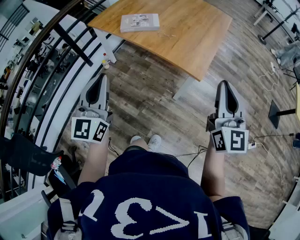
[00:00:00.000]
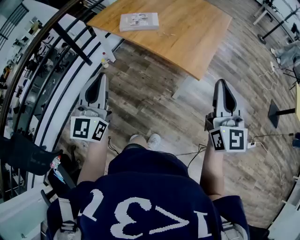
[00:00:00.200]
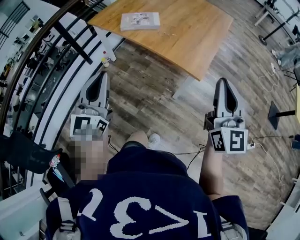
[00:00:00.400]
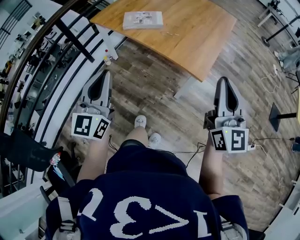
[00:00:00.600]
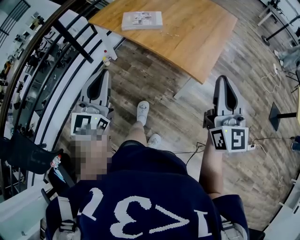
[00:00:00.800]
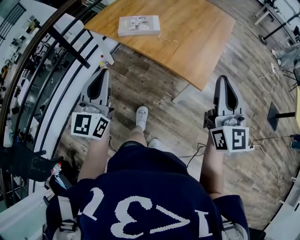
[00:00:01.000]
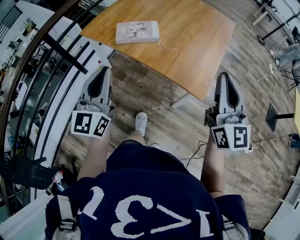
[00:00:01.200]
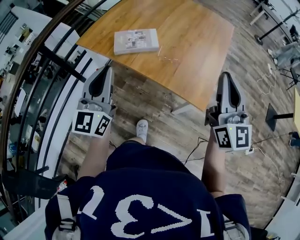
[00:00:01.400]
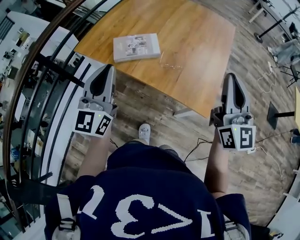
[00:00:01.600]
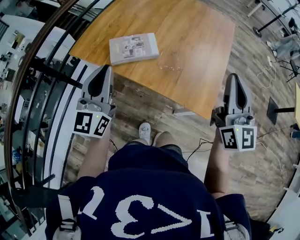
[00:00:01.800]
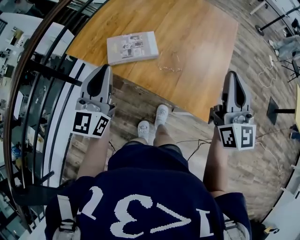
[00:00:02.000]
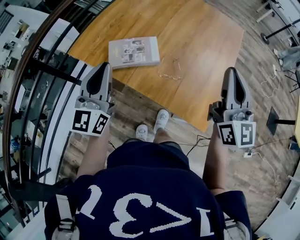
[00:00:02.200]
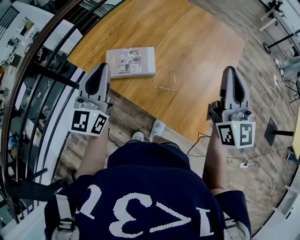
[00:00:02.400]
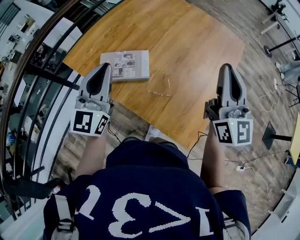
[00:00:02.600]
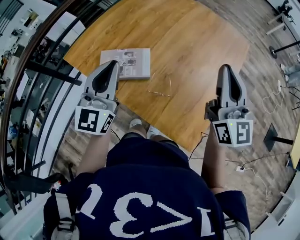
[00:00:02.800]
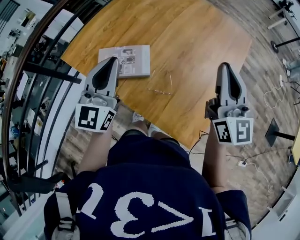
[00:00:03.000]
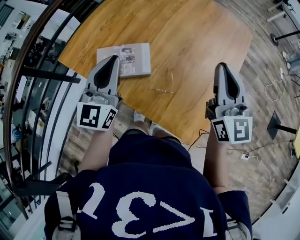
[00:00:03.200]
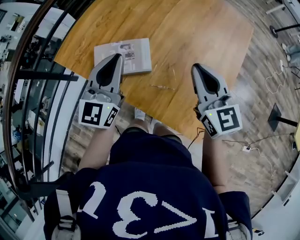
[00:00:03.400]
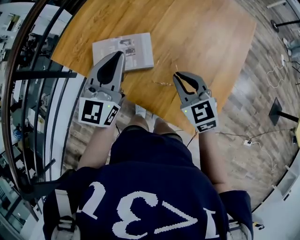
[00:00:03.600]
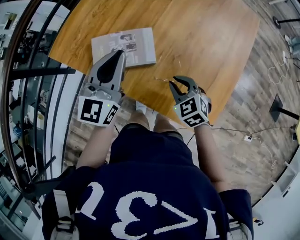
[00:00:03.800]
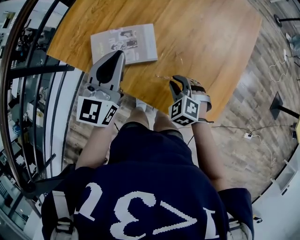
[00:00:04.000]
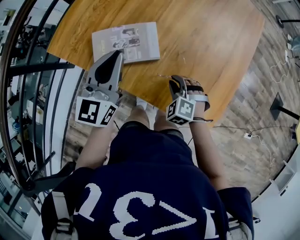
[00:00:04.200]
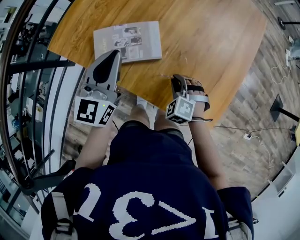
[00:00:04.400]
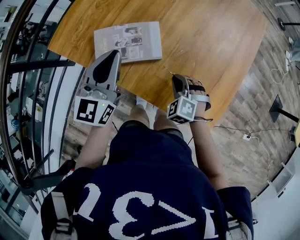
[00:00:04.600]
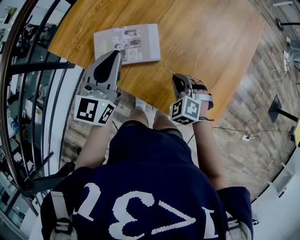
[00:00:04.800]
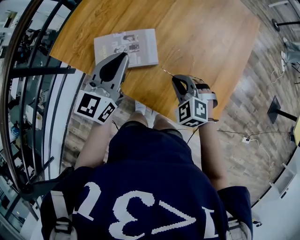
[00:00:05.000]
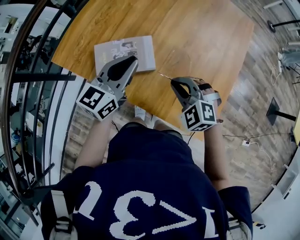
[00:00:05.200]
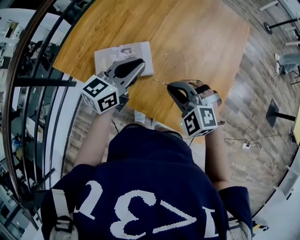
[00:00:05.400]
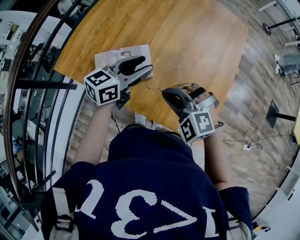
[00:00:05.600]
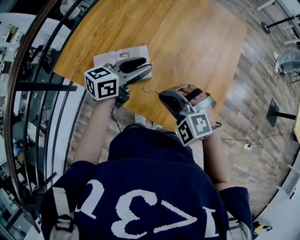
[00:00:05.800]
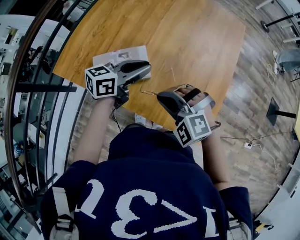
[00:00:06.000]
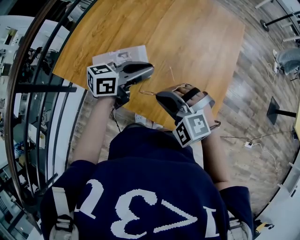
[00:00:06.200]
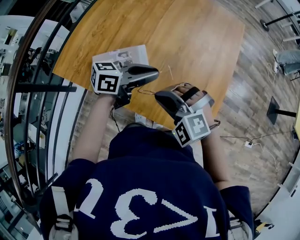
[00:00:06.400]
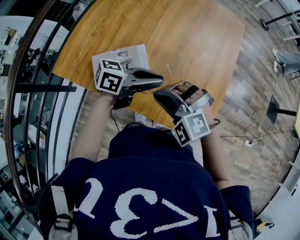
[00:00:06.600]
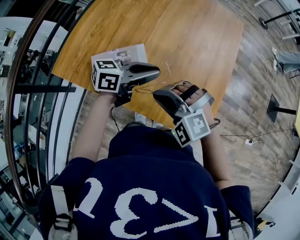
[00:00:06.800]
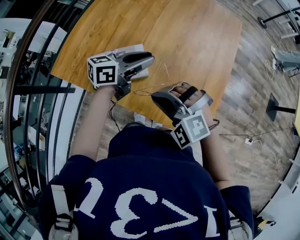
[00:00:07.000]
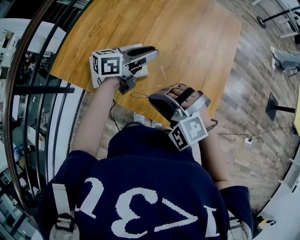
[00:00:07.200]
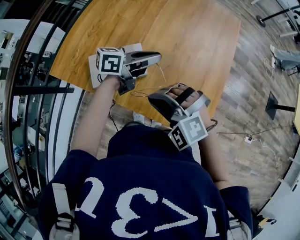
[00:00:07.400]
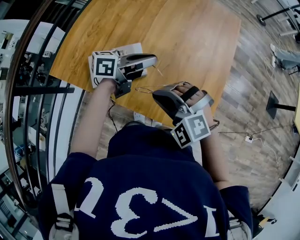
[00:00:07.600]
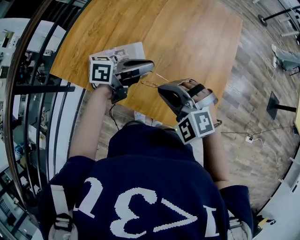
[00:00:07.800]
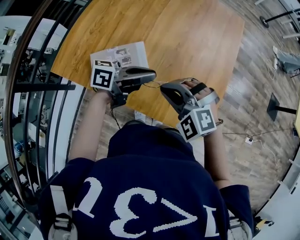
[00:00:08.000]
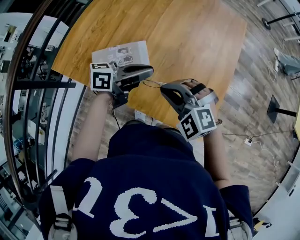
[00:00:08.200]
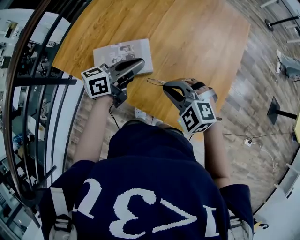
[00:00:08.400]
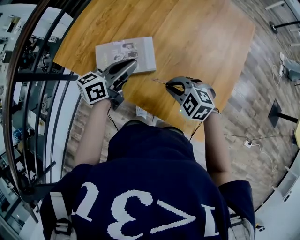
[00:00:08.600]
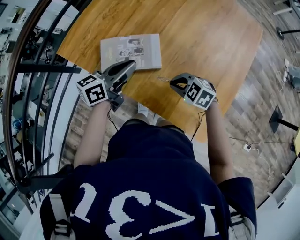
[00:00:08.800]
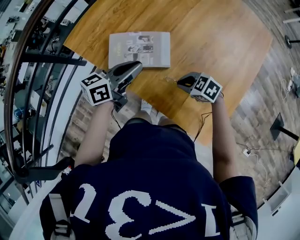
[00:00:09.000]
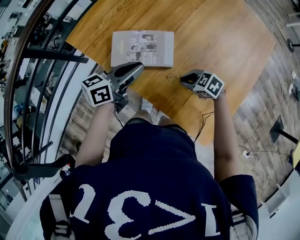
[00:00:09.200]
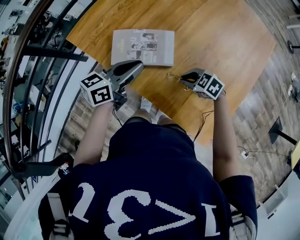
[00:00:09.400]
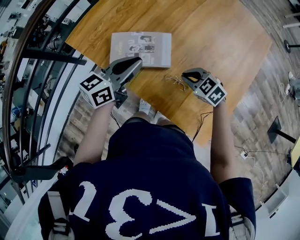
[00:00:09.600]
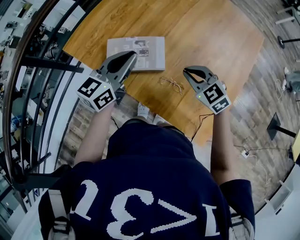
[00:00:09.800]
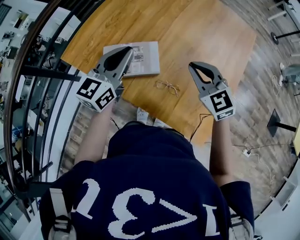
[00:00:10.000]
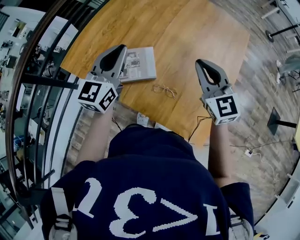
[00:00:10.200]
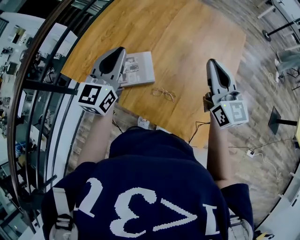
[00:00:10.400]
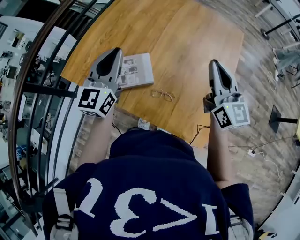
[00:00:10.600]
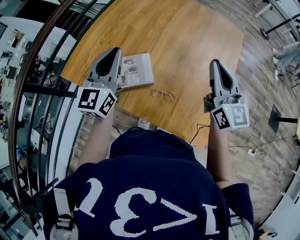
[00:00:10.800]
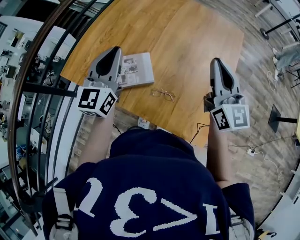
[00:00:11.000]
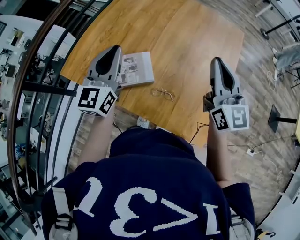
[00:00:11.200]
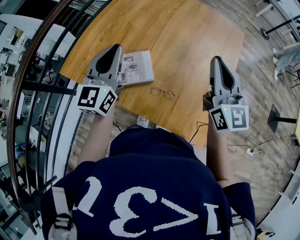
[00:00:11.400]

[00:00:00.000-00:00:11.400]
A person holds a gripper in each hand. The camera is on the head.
00:00:00.000 to 00:00:01.400: The two grippers go roughly 20 cm forward.
00:00:01.400 to 00:00:02.800: The two grippers go about 25 cm forward.
00:00:02.800 to 00:00:04.200: The left gripper goes about 15 cm downward and forward. The right gripper shifts approximately 40 cm downward, and points its fingers about 70 degrees further downward.
00:00:04.200 to 00:00:05.600: The right gripper goes approximately 20 cm upward, and changes its angle by approximately 30 degrees. The left gripper shifts about 10 cm to the right, rotates some 40 degrees, and opens.
00:00:05.600 to 00:00:07.200: The left gripper moves approximately 5 cm, and changes its angle by some 20 degrees.
00:00:07.200 to 00:00:08.600: The left gripper ends up some 10 cm from where it was, and closes its fingers. Meanwhile the right gripper is displaced downward by roughly 10 cm, and changes its angle by approximately 30 degrees.
00:00:08.600 to 00:00:10.000: Both grippers move upward, roughly 10 cm. The left gripper turns by approximately 40 degrees, while the right gripper rotates about 40 degrees.
00:00:10.000 to 00:00:11.400: The right gripper heads upward and to the right, covering approximately 15 cm, and tilts its fingers roughly 30 degrees upward. The left gripper shifts some 5 cm upward.

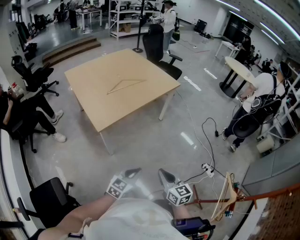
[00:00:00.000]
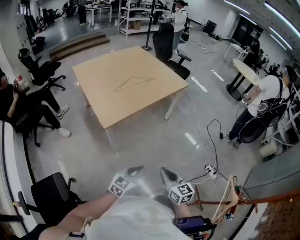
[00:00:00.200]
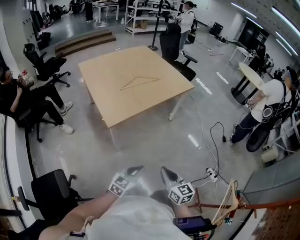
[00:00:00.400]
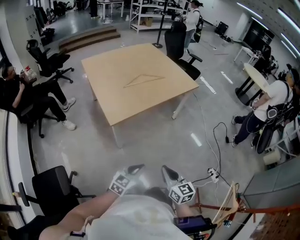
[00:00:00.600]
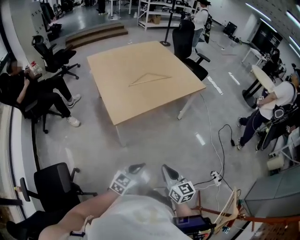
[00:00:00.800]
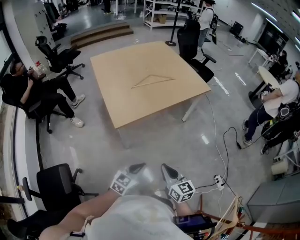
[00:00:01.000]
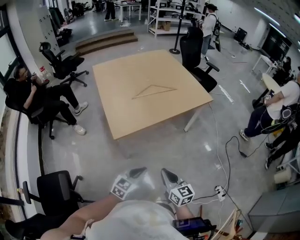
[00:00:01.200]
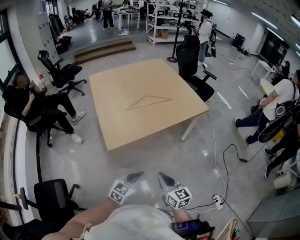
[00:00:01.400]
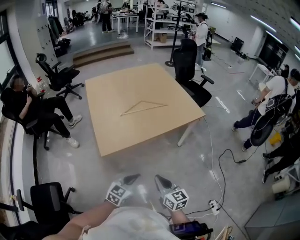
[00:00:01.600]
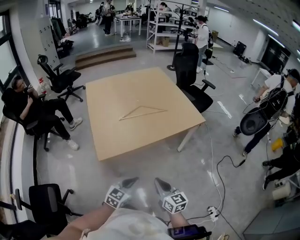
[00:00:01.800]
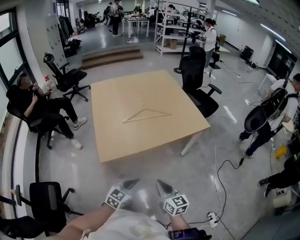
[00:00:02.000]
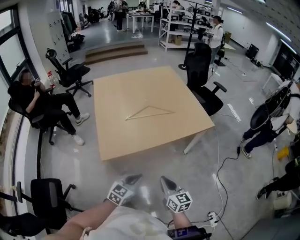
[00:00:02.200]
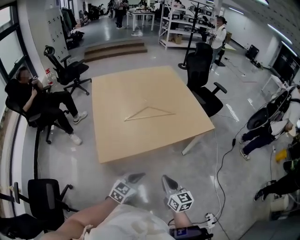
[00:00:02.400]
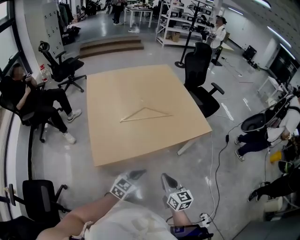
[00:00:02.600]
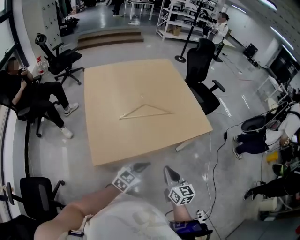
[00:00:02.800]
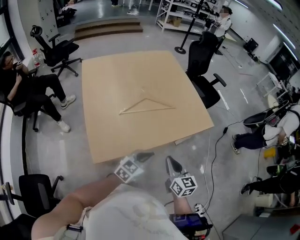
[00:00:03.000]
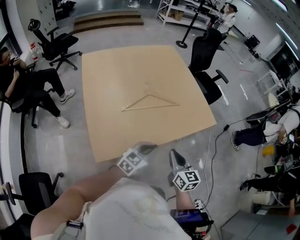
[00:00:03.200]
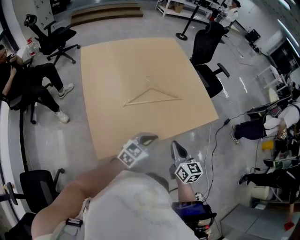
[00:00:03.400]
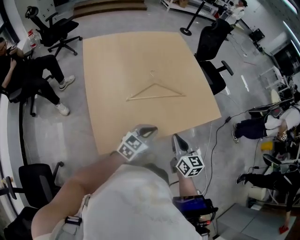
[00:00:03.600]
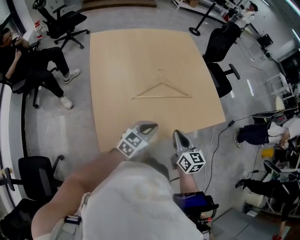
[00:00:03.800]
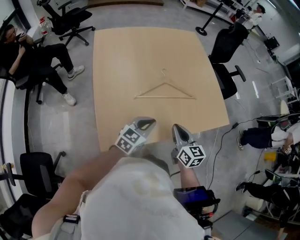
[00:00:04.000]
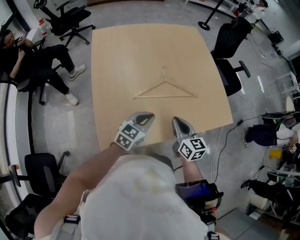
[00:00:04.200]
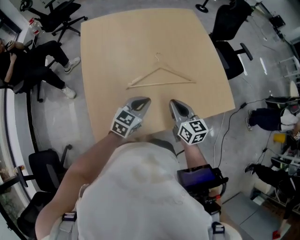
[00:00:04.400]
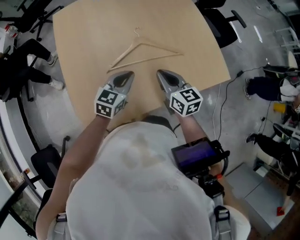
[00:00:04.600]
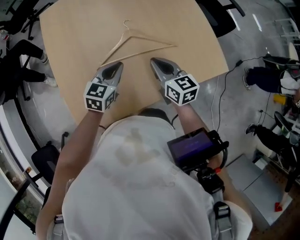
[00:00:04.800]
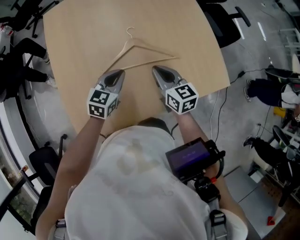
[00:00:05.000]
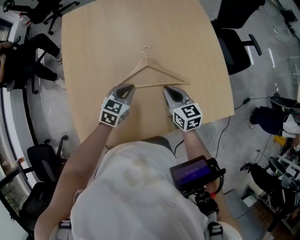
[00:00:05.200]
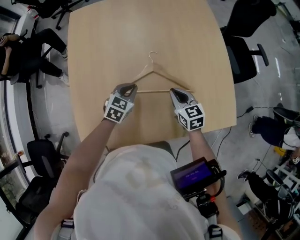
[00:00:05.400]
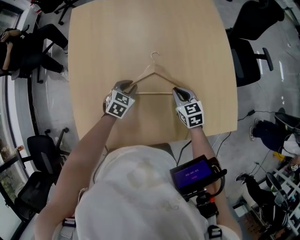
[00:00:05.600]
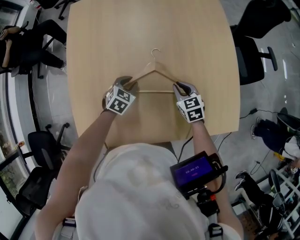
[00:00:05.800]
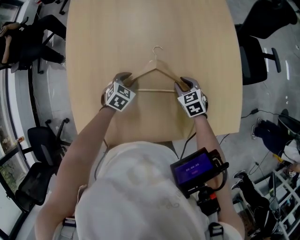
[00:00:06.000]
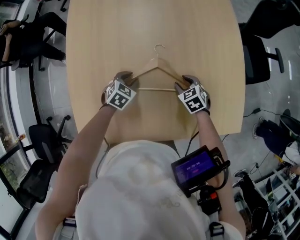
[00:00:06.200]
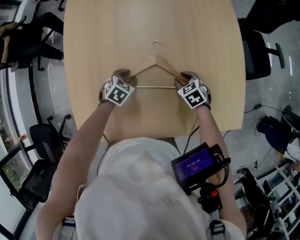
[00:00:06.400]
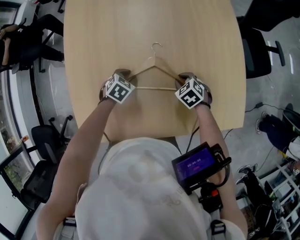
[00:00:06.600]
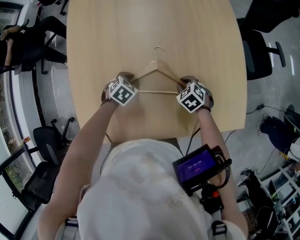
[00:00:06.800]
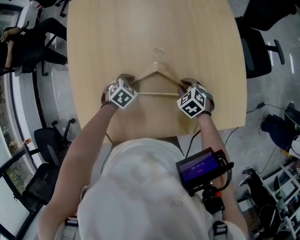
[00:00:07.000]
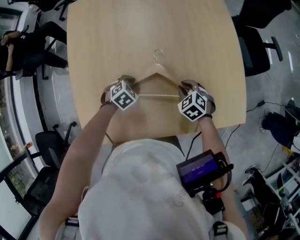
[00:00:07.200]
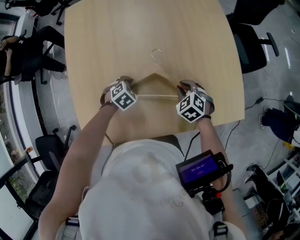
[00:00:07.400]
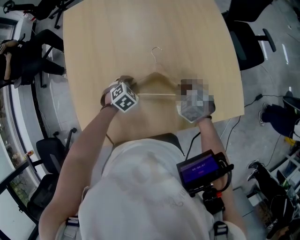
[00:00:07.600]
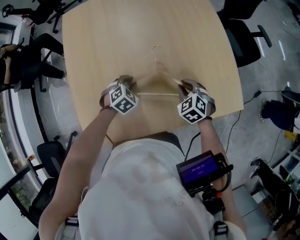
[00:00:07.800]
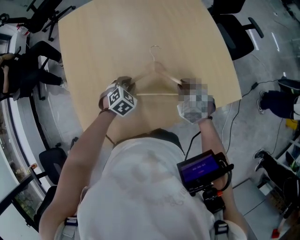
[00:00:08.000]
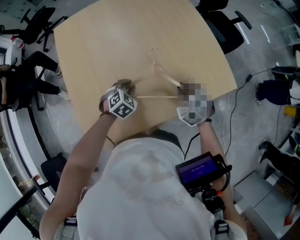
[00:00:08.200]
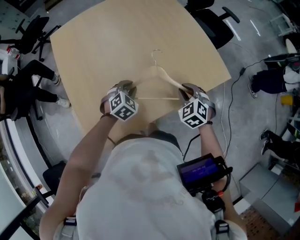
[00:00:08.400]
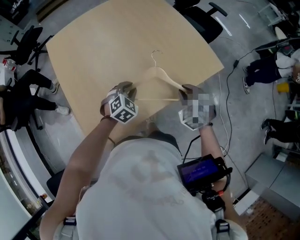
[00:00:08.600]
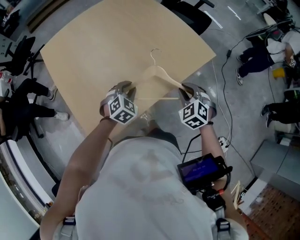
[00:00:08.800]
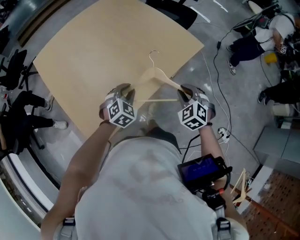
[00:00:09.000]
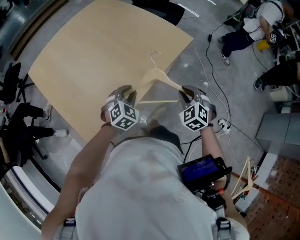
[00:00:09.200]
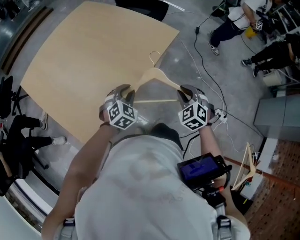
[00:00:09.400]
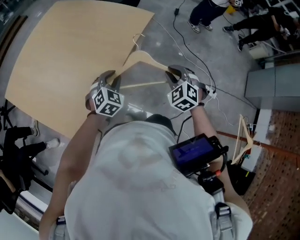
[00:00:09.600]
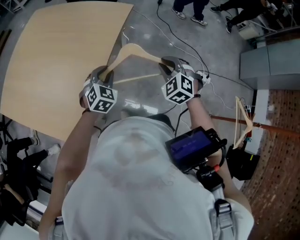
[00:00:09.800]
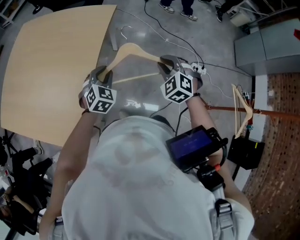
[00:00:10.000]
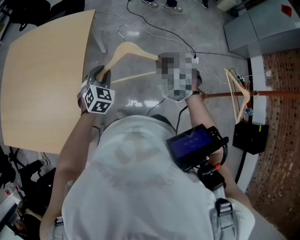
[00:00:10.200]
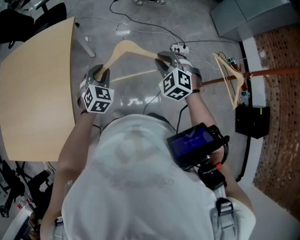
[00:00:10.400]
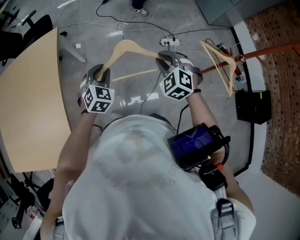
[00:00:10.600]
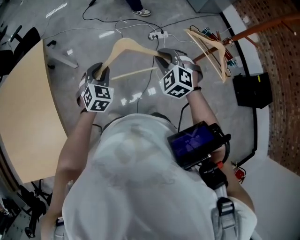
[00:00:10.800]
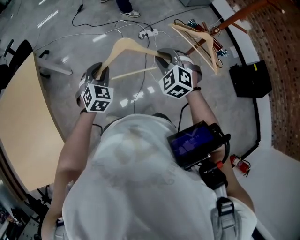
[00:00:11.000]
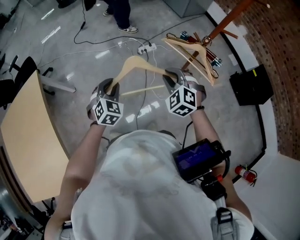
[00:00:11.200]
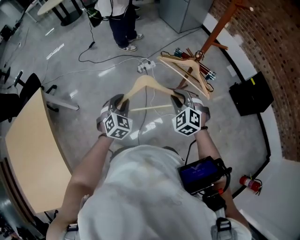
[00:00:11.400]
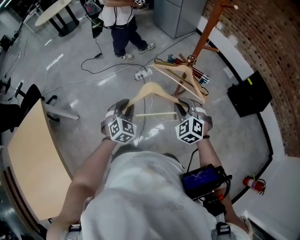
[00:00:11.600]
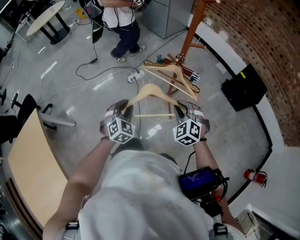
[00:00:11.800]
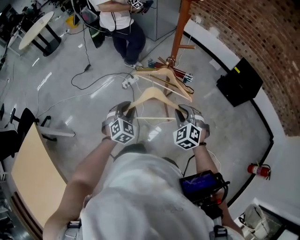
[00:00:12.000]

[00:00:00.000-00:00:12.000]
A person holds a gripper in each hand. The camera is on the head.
00:00:00.000 to 00:00:01.600: Both grippers move forward, approximately 25 cm.
00:00:01.600 to 00:00:03.000: The two grippers go roughly 25 cm forward.
00:00:03.000 to 00:00:04.400: The grippers both shift forward and to the left by approximately 25 cm.
00:00:04.400 to 00:00:06.000: The right gripper goes about 30 cm forward, downward and to the right, tips its fingers downward by about 30 degrees, and opens up; the left gripper heads forward and downward, covering some 25 cm, tips its fingers downward by roughly 30 degrees, and opens.
00:00:06.000 to 00:00:07.600: The left gripper shifts by about 5 cm, and changes its angle by about 20 degrees. Meanwhile the right gripper is displaced backward by roughly 5 cm.
00:00:07.600 to 00:00:09.000: The right gripper moves roughly 35 cm, and rotates about 40 degrees, while the left gripper moves about 25 cm, and turns by roughly 40 degrees.
00:00:09.000 to 00:00:10.400: The left gripper changes place by roughly 35 cm, and changes its angle by about 40 degrees. The right gripper changes place by approximately 40 cm, and changes its angle by about 40 degrees.
00:00:10.400 to 00:00:12.000: The pair of grippers is taken some 50 cm. The right gripper rotates some 50 degrees; the left gripper turns by about 50 degrees.
